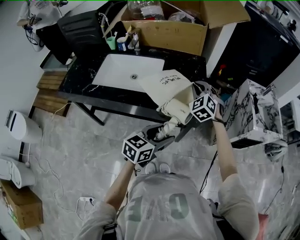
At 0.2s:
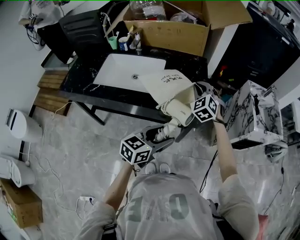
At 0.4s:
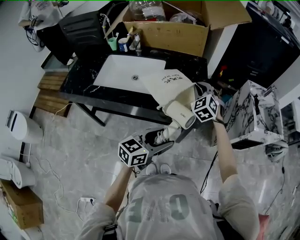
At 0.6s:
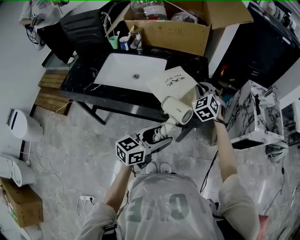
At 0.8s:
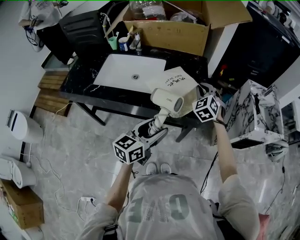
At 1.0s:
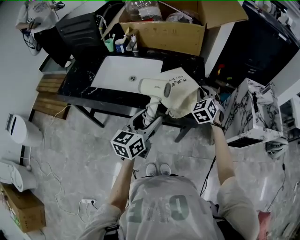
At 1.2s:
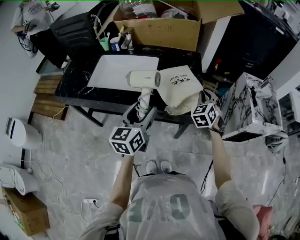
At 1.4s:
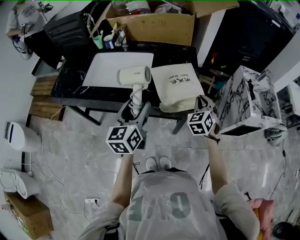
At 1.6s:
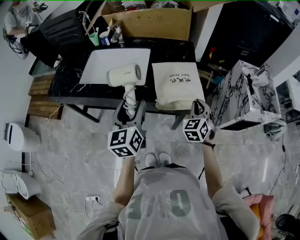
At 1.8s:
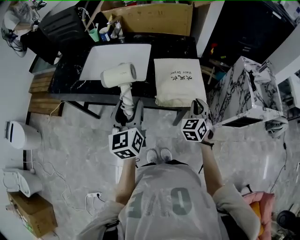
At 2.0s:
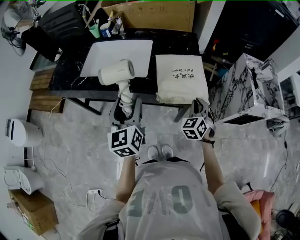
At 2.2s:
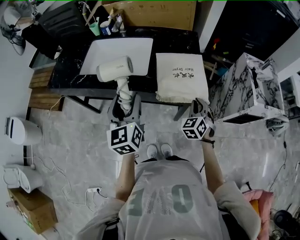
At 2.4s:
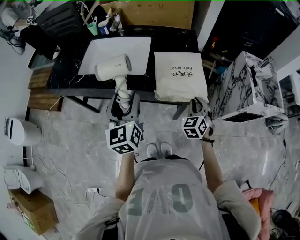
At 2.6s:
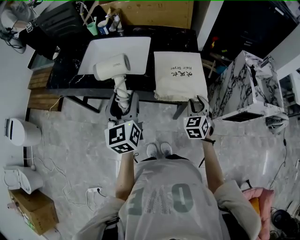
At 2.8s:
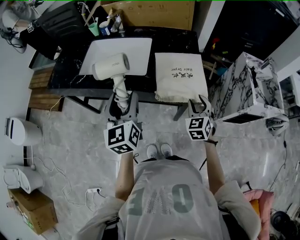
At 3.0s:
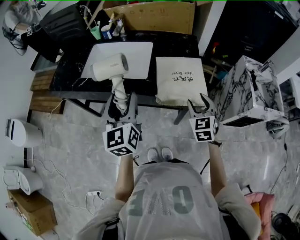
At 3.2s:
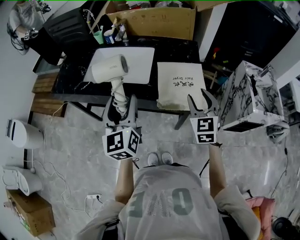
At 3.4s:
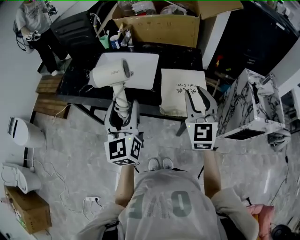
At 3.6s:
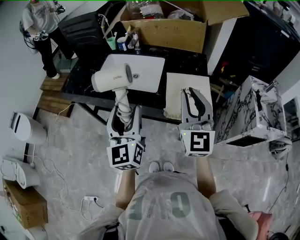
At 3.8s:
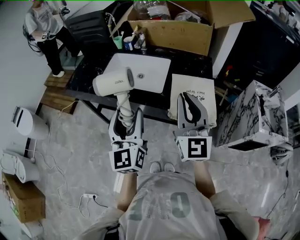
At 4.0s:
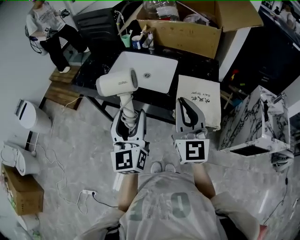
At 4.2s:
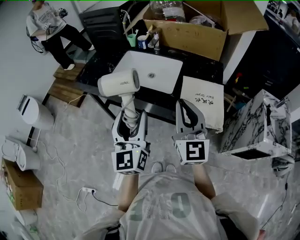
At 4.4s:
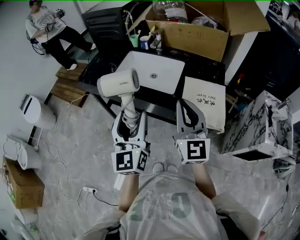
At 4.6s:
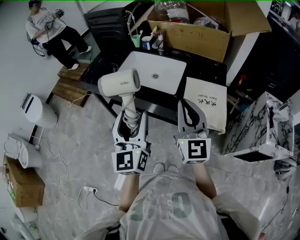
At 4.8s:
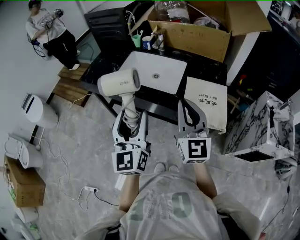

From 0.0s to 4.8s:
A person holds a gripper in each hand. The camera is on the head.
From 0.0s to 1.6s: The right gripper heads to the right, backward and downward, covering about 15 cm, and swivels some 30 degrees. The left gripper goes approximately 15 cm to the left and upward, and swivels roughly 40 degrees.
From 1.6s to 3.2s: The right gripper goes about 10 cm upward, turns by some 20 degrees, and opens, while the left gripper is displaced upward by some 5 cm.
From 3.2s to 4.8s: The left gripper shifts roughly 10 cm backward and to the left; the right gripper moves to the left and upward, about 20 cm, swivels some 30 degrees, and closes.

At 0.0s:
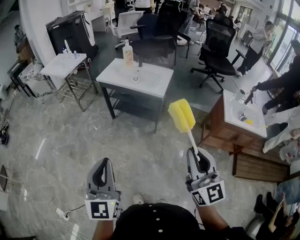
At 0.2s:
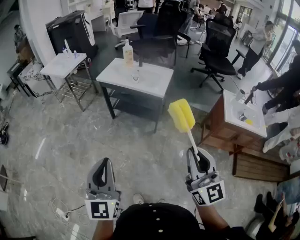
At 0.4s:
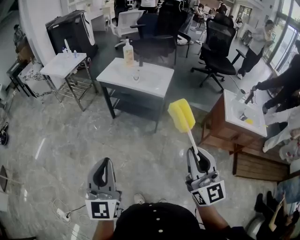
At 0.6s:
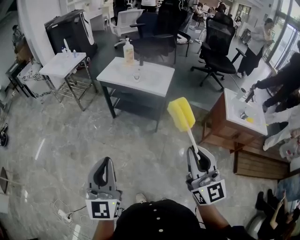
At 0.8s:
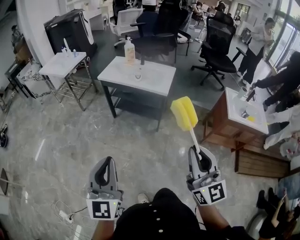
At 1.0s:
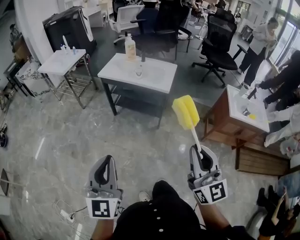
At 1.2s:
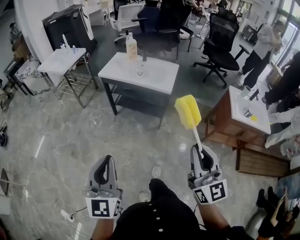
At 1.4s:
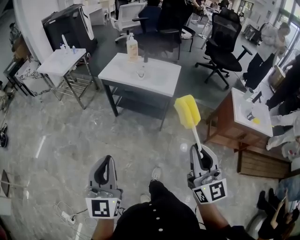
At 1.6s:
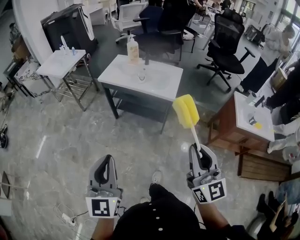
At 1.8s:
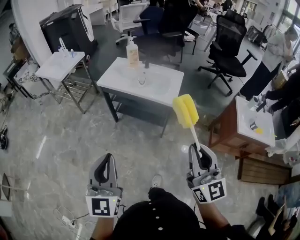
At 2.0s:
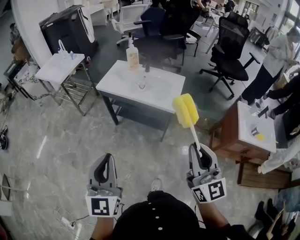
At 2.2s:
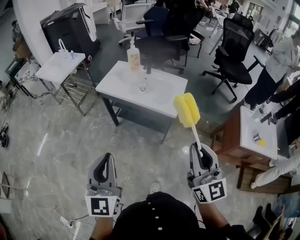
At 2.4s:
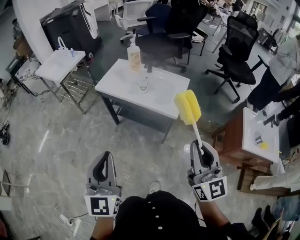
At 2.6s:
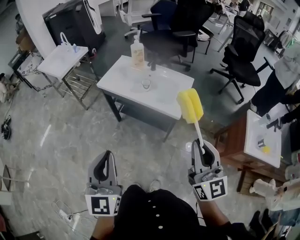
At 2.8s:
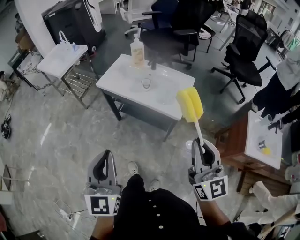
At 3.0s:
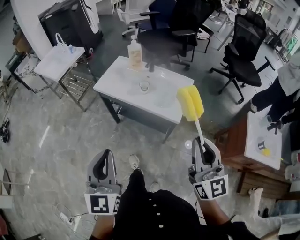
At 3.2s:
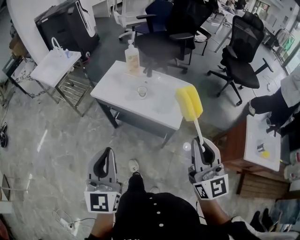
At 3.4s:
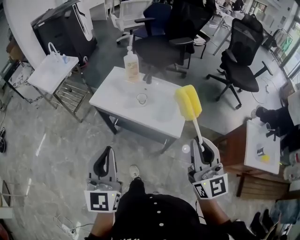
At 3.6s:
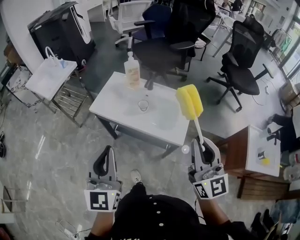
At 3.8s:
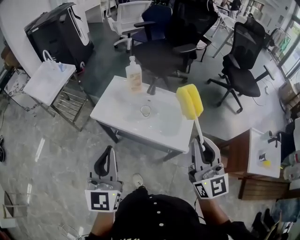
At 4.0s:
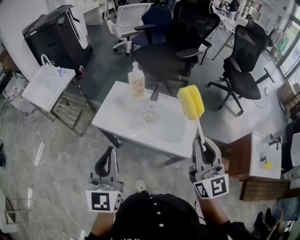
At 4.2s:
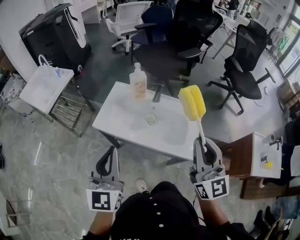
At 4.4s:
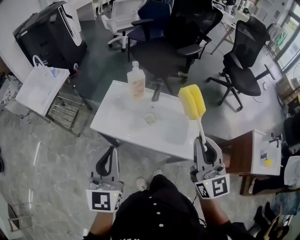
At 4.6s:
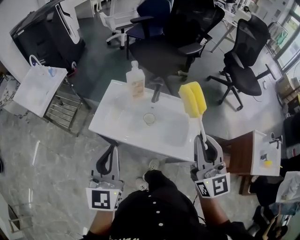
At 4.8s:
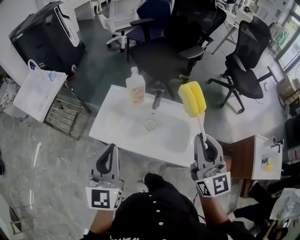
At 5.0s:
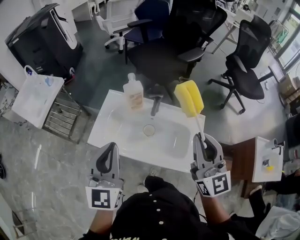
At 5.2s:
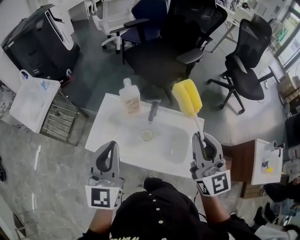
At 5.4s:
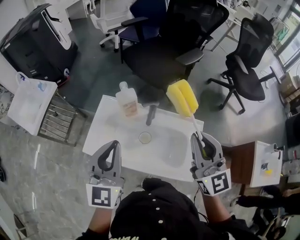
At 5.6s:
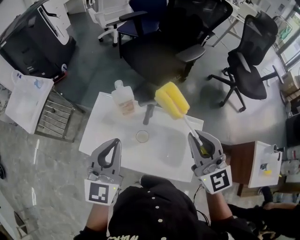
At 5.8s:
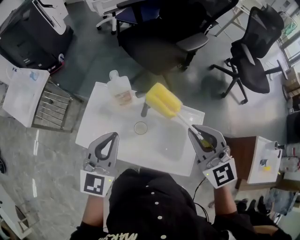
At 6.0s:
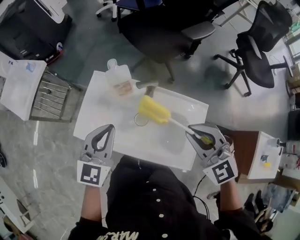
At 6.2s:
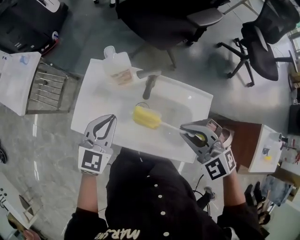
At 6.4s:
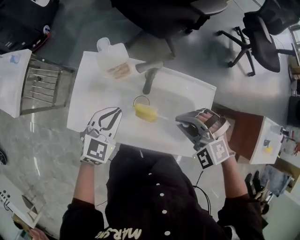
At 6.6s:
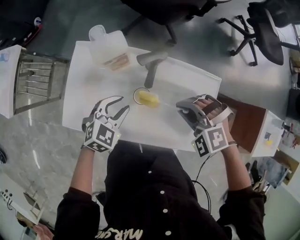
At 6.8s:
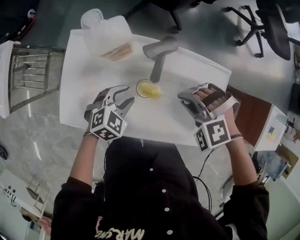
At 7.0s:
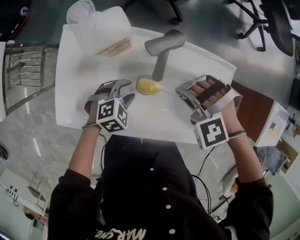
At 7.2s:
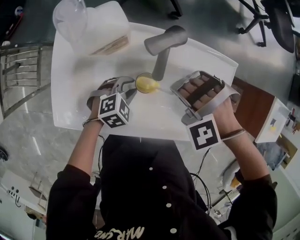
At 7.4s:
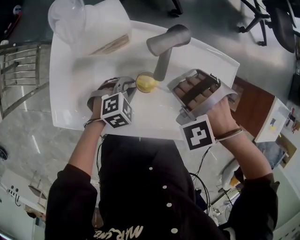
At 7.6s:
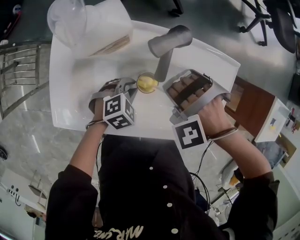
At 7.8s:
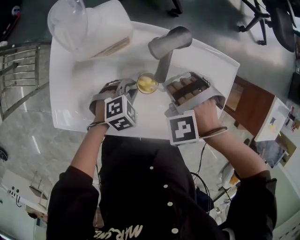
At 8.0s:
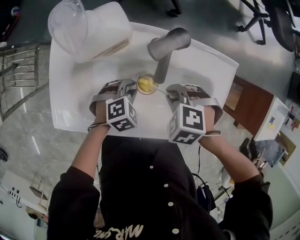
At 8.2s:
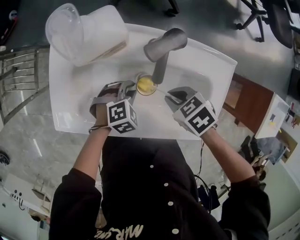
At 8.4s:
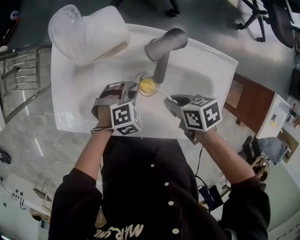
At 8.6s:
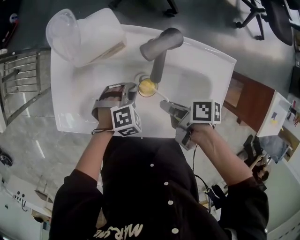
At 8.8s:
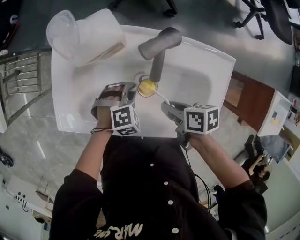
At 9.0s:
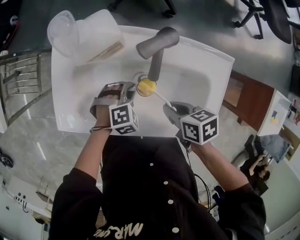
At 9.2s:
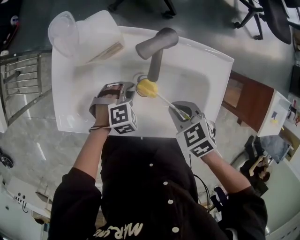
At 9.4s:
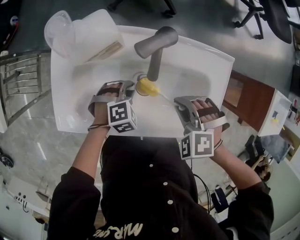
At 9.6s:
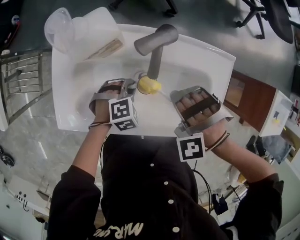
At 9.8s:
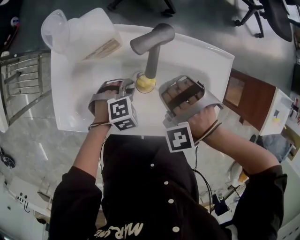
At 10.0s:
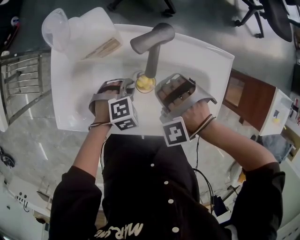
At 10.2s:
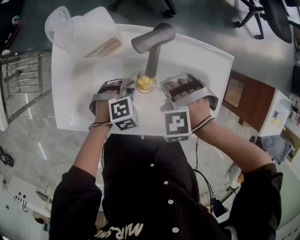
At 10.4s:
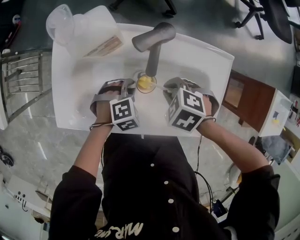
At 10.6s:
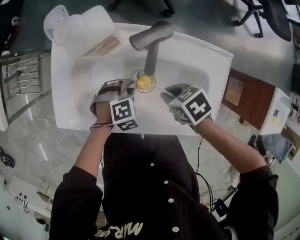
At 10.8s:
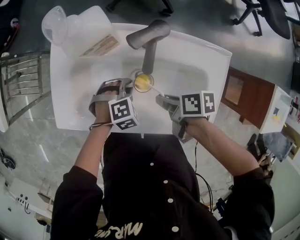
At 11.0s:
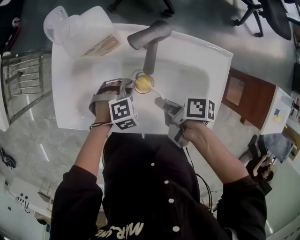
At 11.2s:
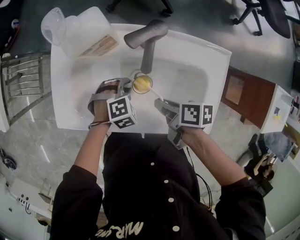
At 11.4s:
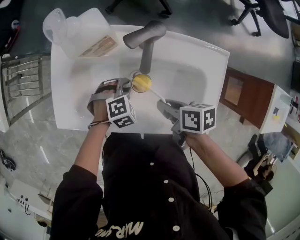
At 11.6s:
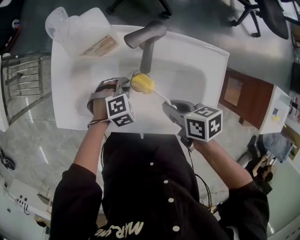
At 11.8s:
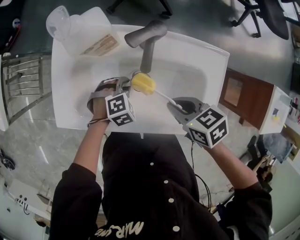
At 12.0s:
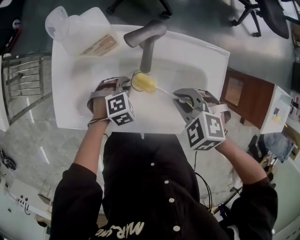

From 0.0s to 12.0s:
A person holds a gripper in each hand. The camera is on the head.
From 0.0s to 1.6s: Both grippers travel together forward, some 15 cm.
From 1.6s to 3.0s: The grippers both shift forward by roughly 25 cm.
From 3.0s to 4.4s: The grippers both shift forward by approximately 30 cm.
From 4.4s to 6.0s: Both grippers travel together forward and downward, some 25 cm. The left gripper rotates approximately 20 degrees. The right gripper points its fingers roughly 30 degrees further downward.
From 6.0s to 7.6s: The two grippers go some 35 cm downward. The left gripper tips its fingers downward by some 40 degrees, and opens and closes again. Meanwhile the right gripper angles its fingers downward, by roughly 50 degrees.
From 7.6s to 9.0s: The right gripper shifts by about 5 cm, and rolls clockwise, seen from behind, by about 130 degrees.
From 9.0s to 10.4s: The right gripper twists roughly 60 degrees counterclockwise, seen from behind.
From 10.4s to 12.0s: The right gripper shifts about 5 cm upward.

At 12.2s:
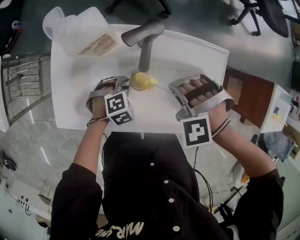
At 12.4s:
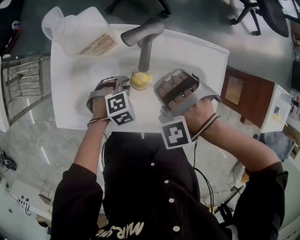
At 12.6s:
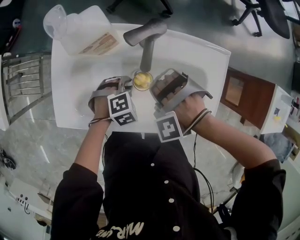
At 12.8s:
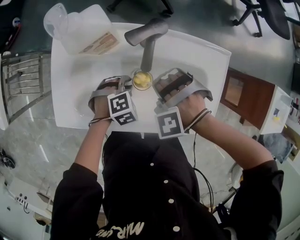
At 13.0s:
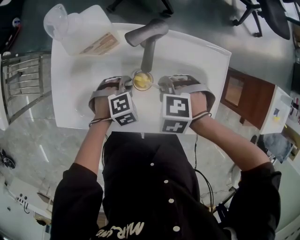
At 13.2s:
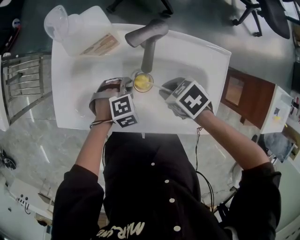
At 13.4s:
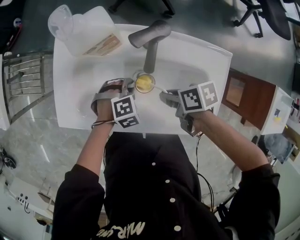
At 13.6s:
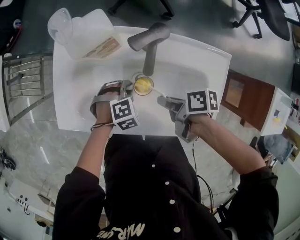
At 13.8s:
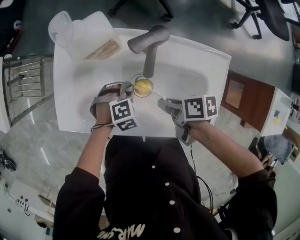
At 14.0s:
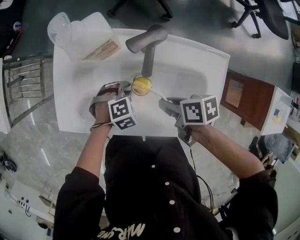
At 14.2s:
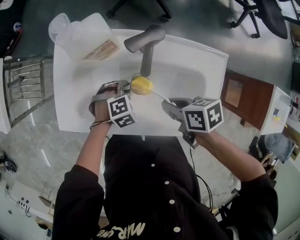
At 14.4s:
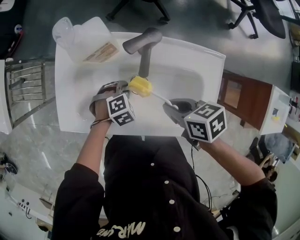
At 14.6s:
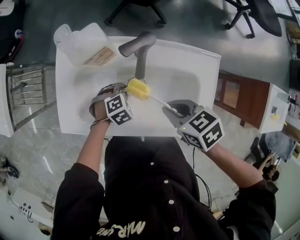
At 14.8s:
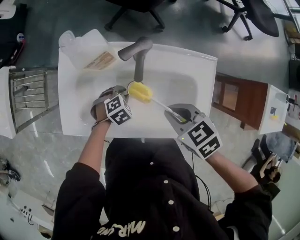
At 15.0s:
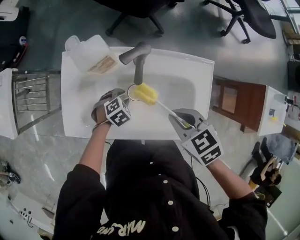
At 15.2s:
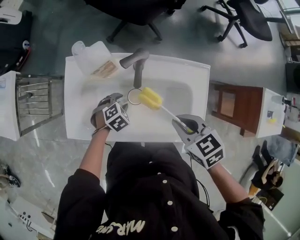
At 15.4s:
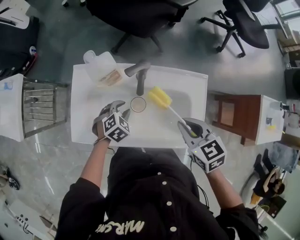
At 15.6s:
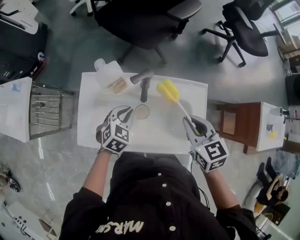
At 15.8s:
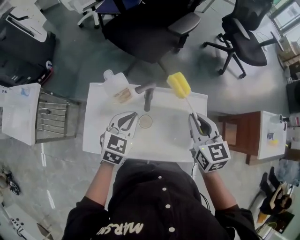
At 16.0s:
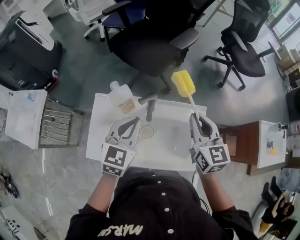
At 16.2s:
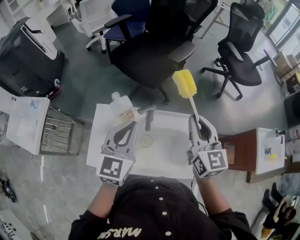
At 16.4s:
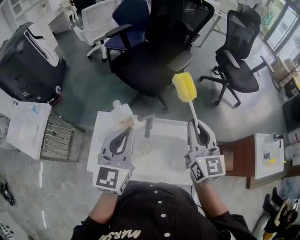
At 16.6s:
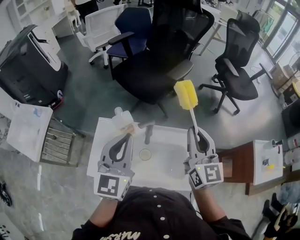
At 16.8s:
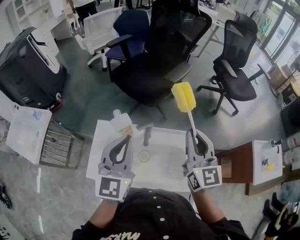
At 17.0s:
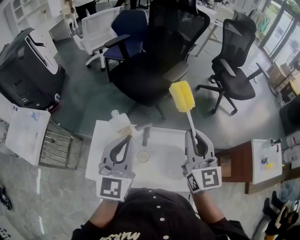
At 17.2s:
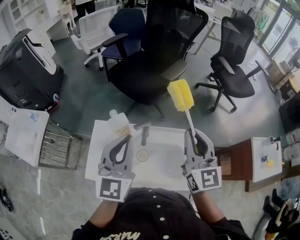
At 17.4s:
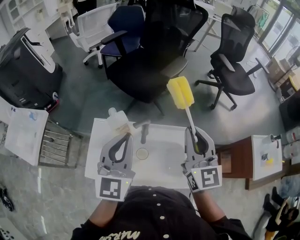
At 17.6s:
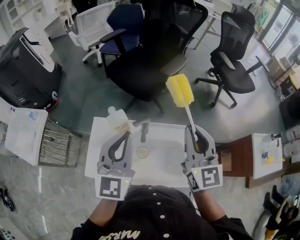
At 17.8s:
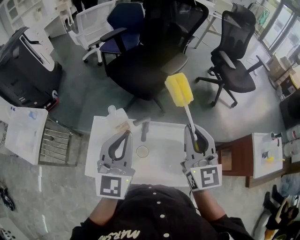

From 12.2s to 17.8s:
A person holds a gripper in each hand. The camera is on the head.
From 12.2s to 13.6s: The right gripper shifts some 5 cm downward, and rotates around the line of its fingers by some 130 degrees, clockwise from behind.
From 13.6s to 15.0s: The right gripper shifts some 15 cm upward, and rolls counterclockwise, seen from behind, by about 60 degrees.
From 15.0s to 16.4s: The right gripper moves upward, roughly 25 cm, and points its fingers about 50 degrees further upward. The left gripper moves upward, roughly 50 cm, points its fingers about 70 degrees further upward, and closes its fingers.
From 16.4s to 17.8s: The grippers move only a little.

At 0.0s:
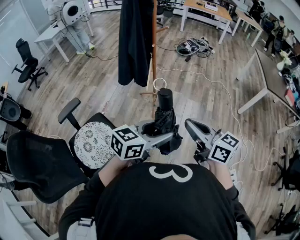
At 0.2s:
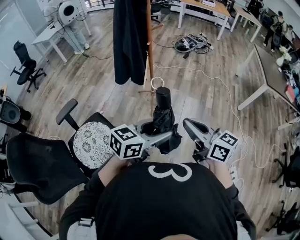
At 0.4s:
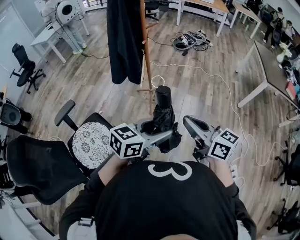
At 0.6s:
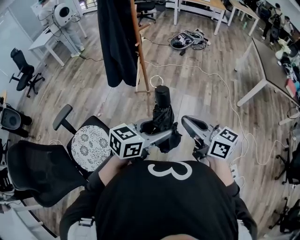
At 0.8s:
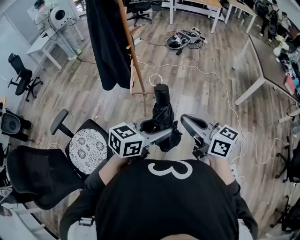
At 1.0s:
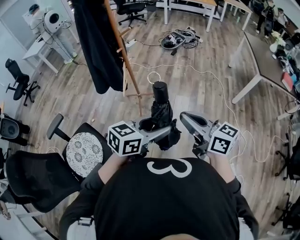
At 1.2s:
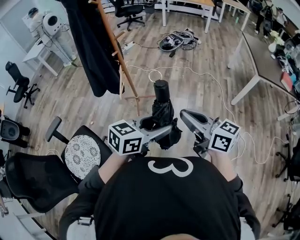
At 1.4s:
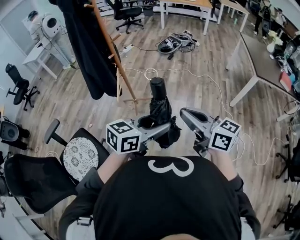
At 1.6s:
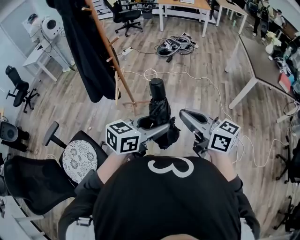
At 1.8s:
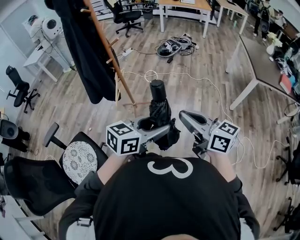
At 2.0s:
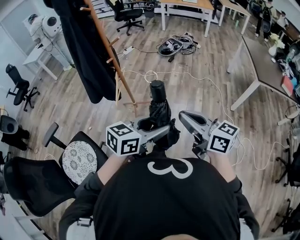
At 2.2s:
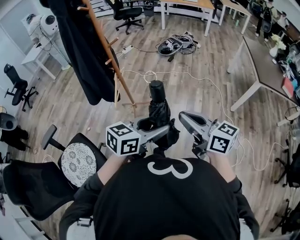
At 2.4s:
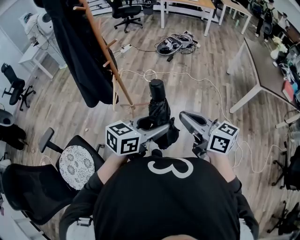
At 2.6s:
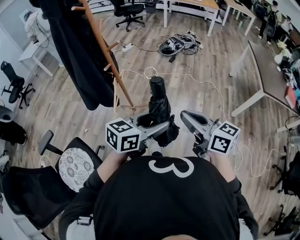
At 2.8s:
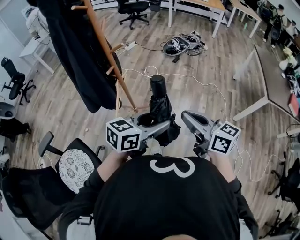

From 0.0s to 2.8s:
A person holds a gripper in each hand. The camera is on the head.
From 0.0s to 1.4s: The grippers both shift to the right and forward by some 25 cm.
From 1.4s to 2.8s: Both grippers travel together forward, roughly 20 cm.
